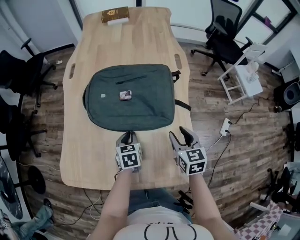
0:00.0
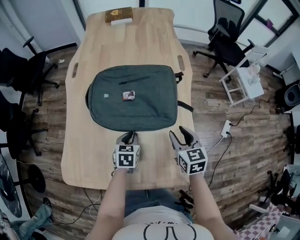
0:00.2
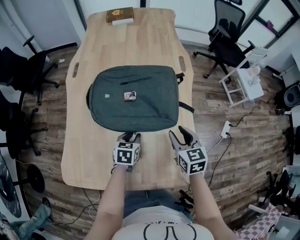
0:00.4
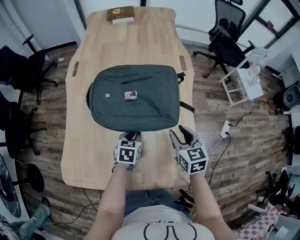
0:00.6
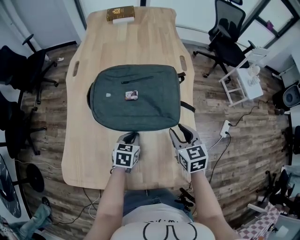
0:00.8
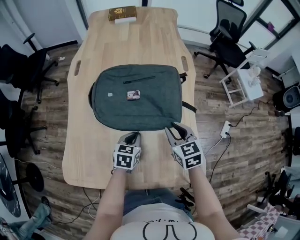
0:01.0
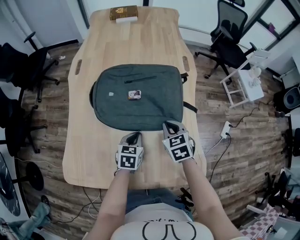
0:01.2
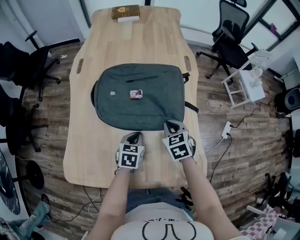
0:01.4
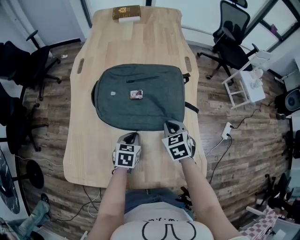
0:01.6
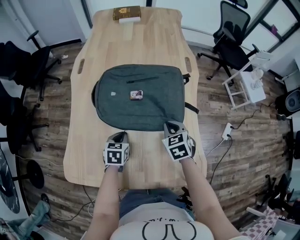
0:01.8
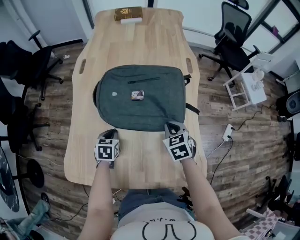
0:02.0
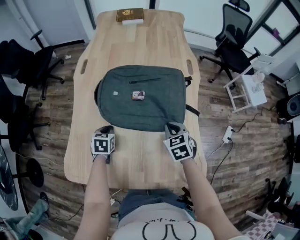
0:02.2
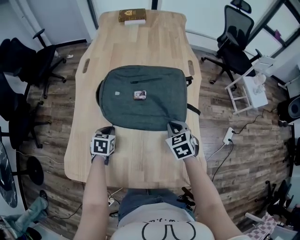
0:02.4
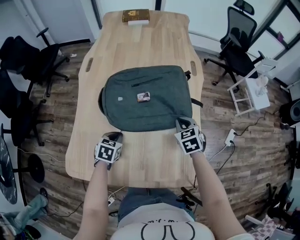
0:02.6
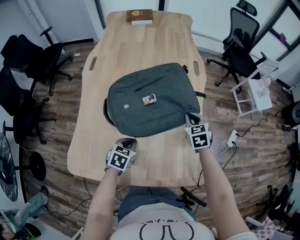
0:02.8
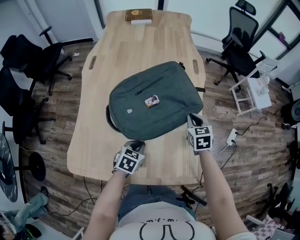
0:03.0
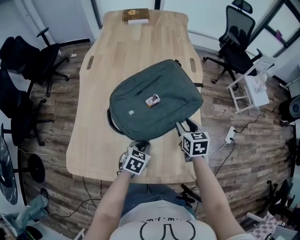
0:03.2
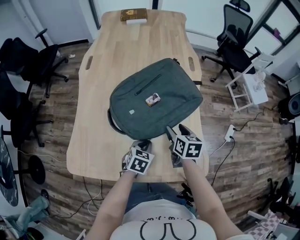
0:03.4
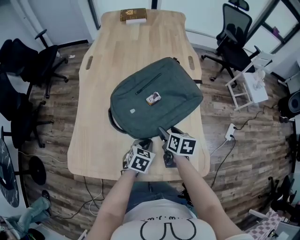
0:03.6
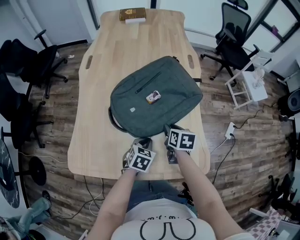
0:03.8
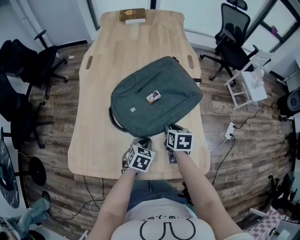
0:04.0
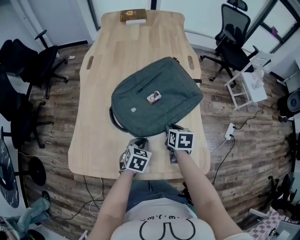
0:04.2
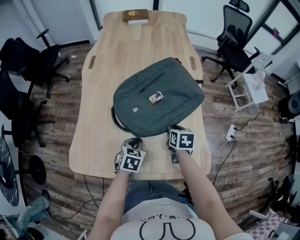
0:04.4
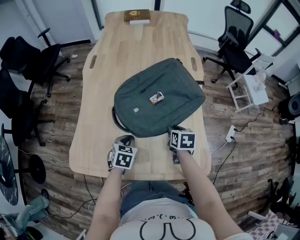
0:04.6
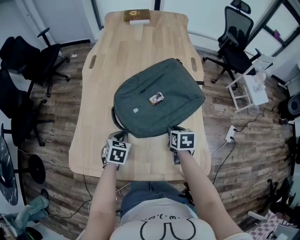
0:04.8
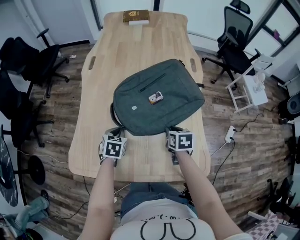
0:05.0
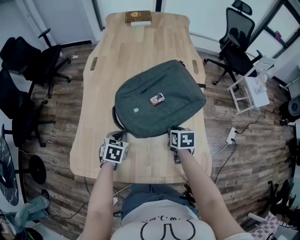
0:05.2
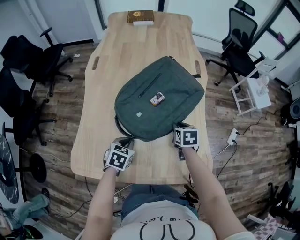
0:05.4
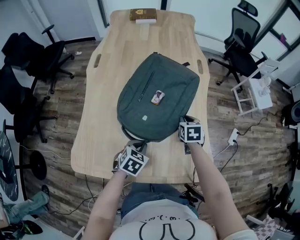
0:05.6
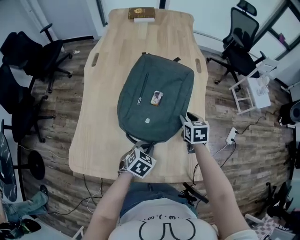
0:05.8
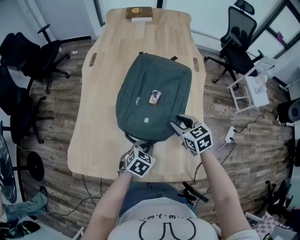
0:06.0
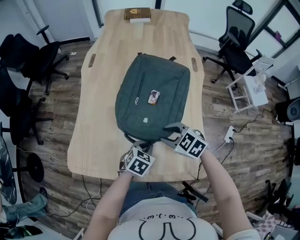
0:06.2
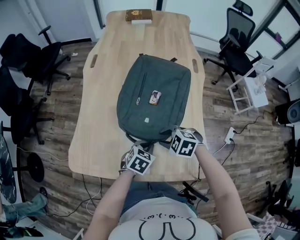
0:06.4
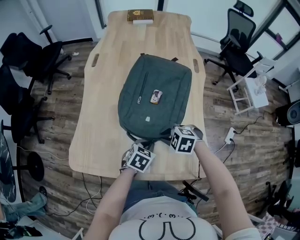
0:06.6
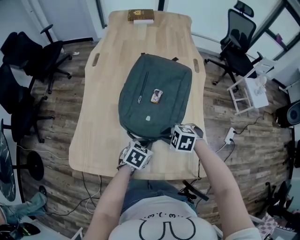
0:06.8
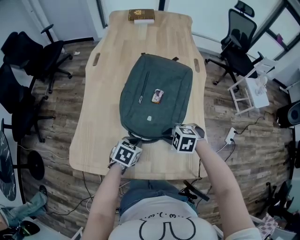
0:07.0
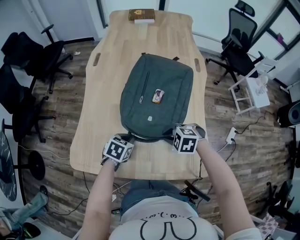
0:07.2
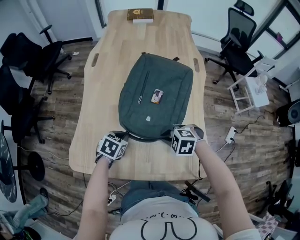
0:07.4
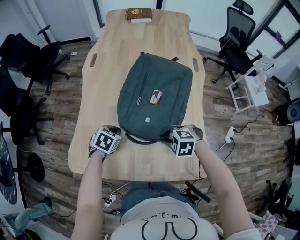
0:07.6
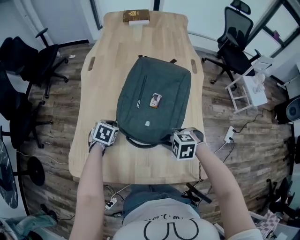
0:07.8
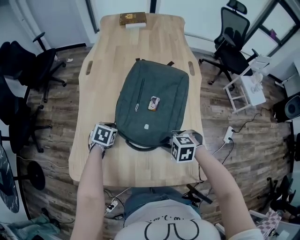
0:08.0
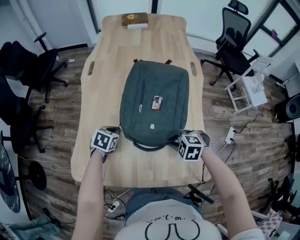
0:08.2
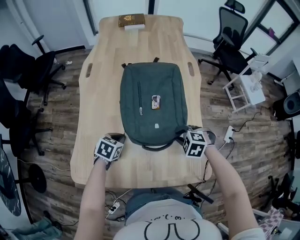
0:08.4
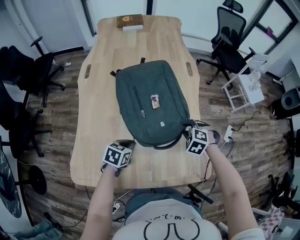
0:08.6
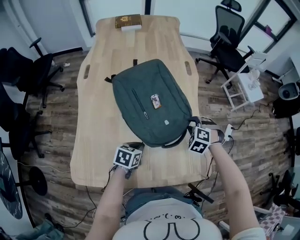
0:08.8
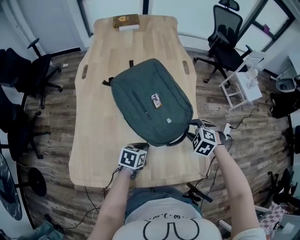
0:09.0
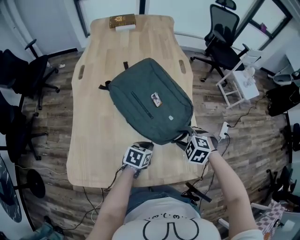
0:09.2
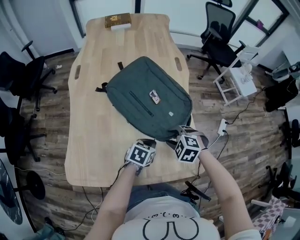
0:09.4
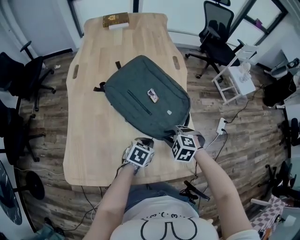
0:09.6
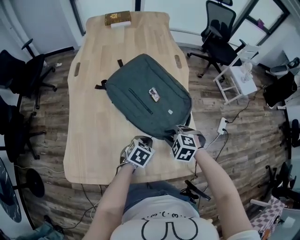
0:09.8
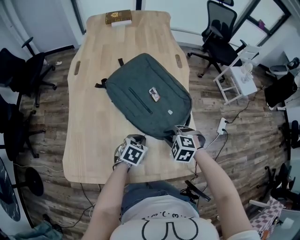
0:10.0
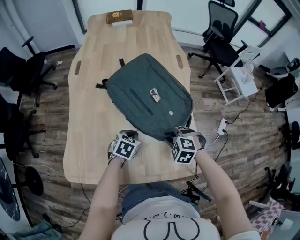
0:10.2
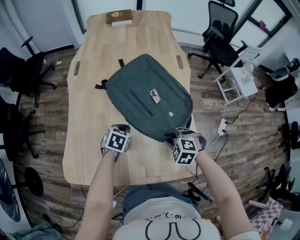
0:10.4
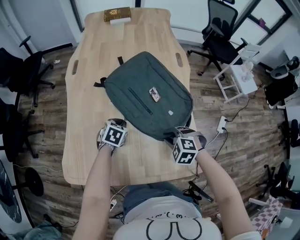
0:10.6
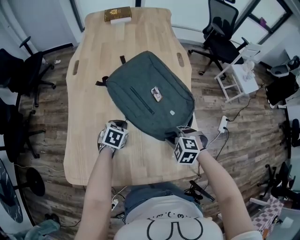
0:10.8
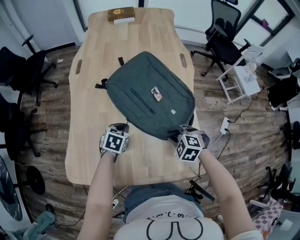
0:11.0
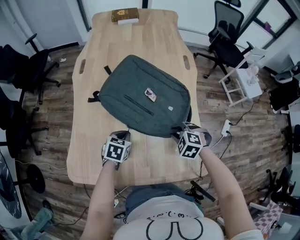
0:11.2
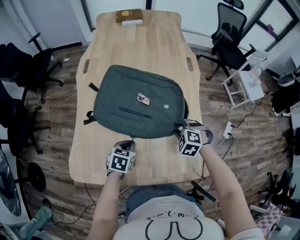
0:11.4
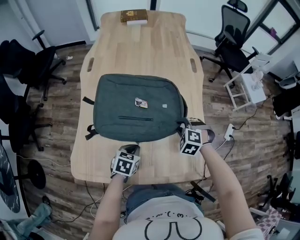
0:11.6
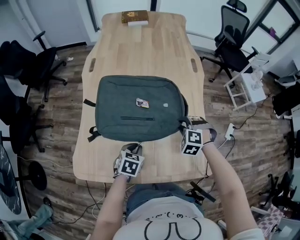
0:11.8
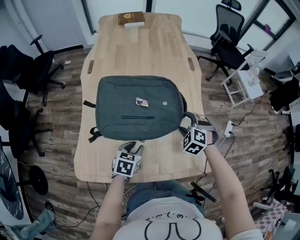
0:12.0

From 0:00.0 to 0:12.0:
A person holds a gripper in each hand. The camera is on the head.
From 0:00.0 to 0:01.6: The right gripper shifts approximately 10 cm to the left, swivels some 20 degrees, and closes its fingers.
From 0:01.6 to 0:03.0: The left gripper moves backward, about 5 cm, and moves about 15 cm to the left and comes back; the right gripper goes some 10 cm to the right.
From 0:03.0 to 0:04.4: The right gripper travels backward and to the left by some 10 cm, turns by about 30 degrees, and opens and closes again.
From 0:04.4 to 0:06.0: The right gripper is displaced upward by approximately 5 cm, and rotates roughly 40 degrees. The left gripper shifts roughly 5 cm to the right.
From 0:06.0 to 0:07.6: The right gripper shifts by about 10 cm, turns by approximately 60 degrees, and closes; the left gripper changes place by approximately 20 cm.
From 0:07.6 to 0:09.0: The left gripper ends up some 15 cm from where it was, and turns by approximately 20 degrees; the right gripper changes place by roughly 15 cm, rotates roughly 30 degrees, and opens its fingers.
From 0:09.0 to 0:10.4: The left gripper goes roughly 10 cm to the left and forward, while the right gripper is displaced backward and to the left by about 10 cm.
From 0:10.4 to 0:12.0: The right gripper heads forward, covering some 5 cm, rotates some 20 degrees, and opens up; the left gripper travels backward by roughly 10 cm, and opens its fingers.

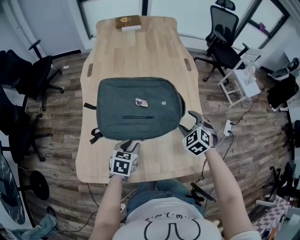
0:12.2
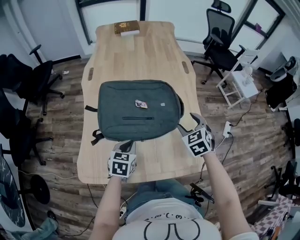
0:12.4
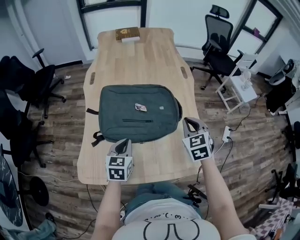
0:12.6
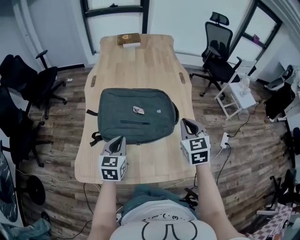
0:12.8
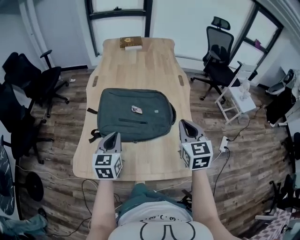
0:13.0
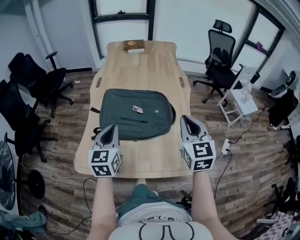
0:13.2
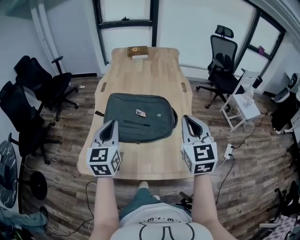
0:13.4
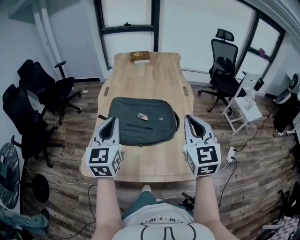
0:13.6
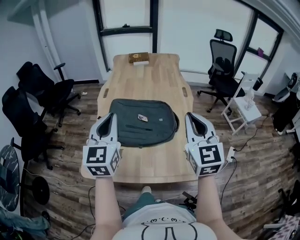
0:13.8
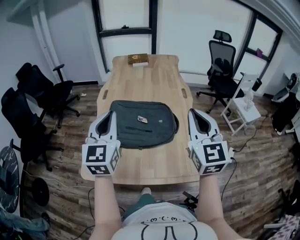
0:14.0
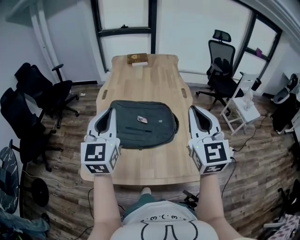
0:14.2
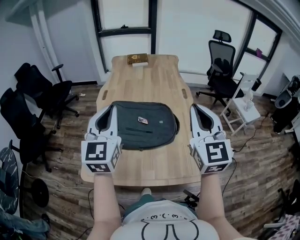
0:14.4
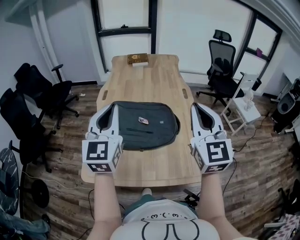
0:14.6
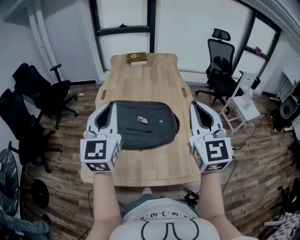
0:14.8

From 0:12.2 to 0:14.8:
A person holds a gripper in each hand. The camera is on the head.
From 0:12.2 to 0:13.4: The grippers both shift upward by some 25 cm. The right gripper tips its fingers upward by approximately 40 degrees, and closes its fingers, while the left gripper angles its fingers upward, by about 40 degrees, and closes.
From 0:13.4 to 0:14.8: Both grippers move upward, roughly 10 cm.

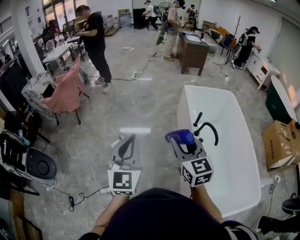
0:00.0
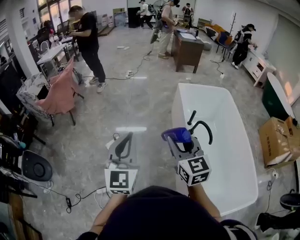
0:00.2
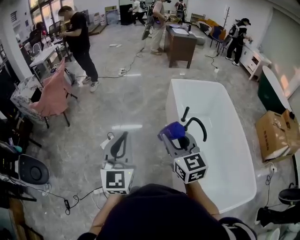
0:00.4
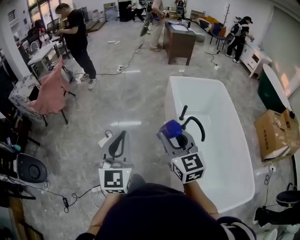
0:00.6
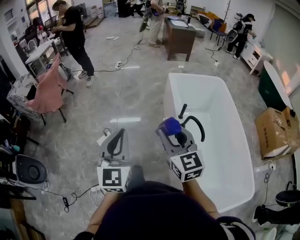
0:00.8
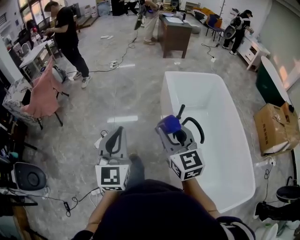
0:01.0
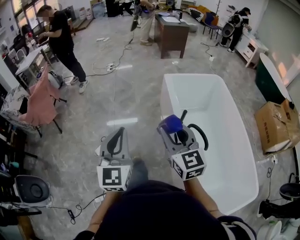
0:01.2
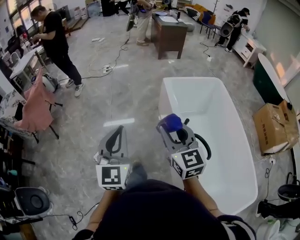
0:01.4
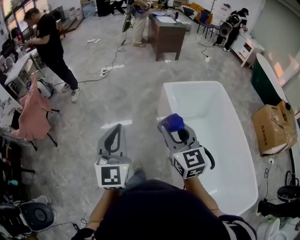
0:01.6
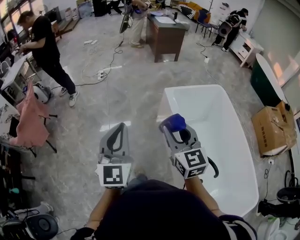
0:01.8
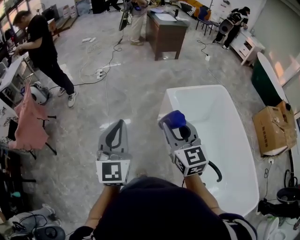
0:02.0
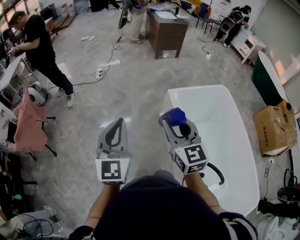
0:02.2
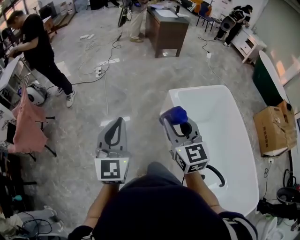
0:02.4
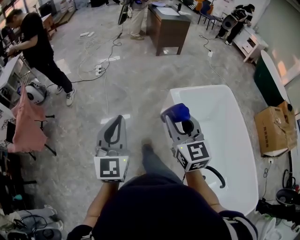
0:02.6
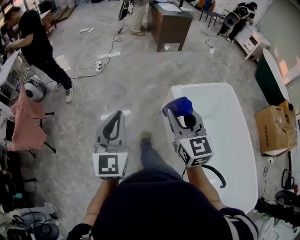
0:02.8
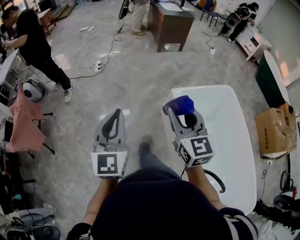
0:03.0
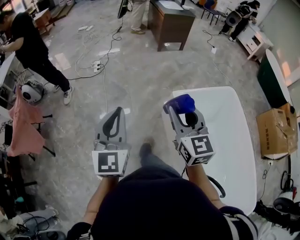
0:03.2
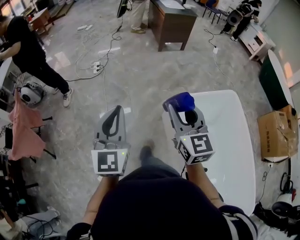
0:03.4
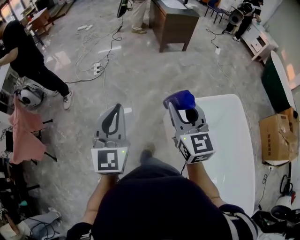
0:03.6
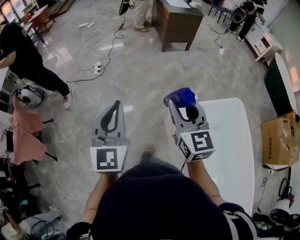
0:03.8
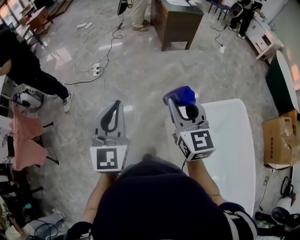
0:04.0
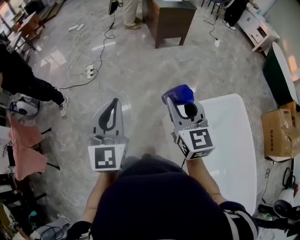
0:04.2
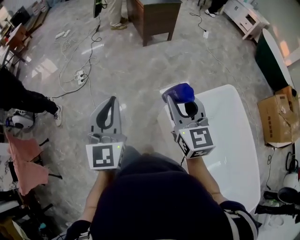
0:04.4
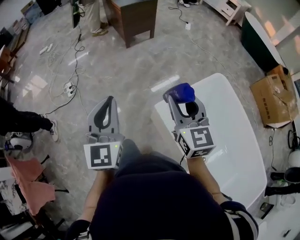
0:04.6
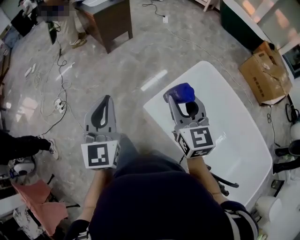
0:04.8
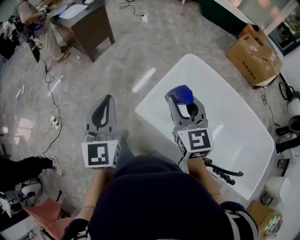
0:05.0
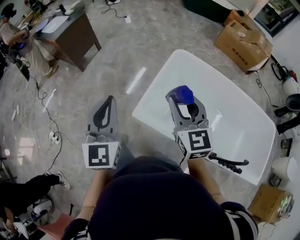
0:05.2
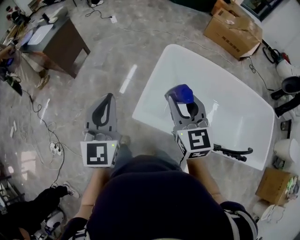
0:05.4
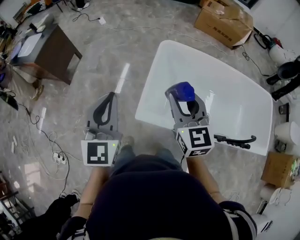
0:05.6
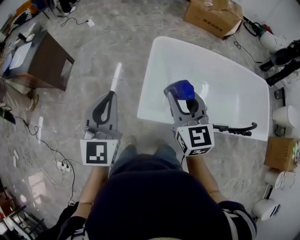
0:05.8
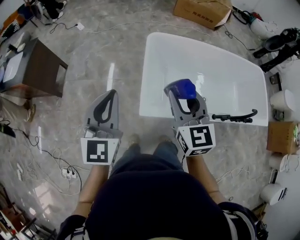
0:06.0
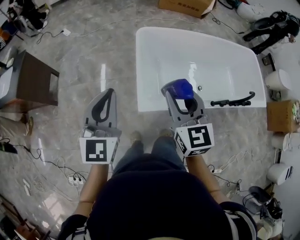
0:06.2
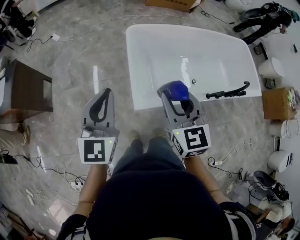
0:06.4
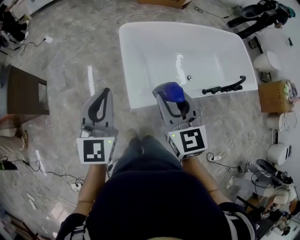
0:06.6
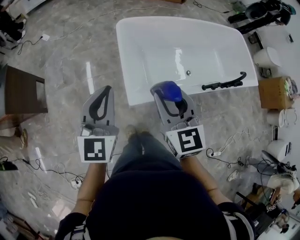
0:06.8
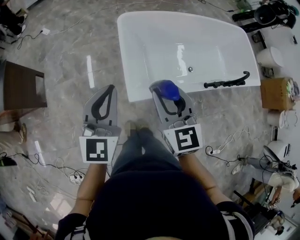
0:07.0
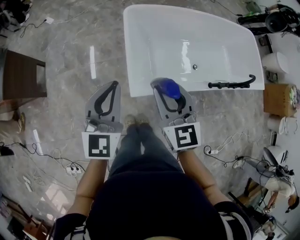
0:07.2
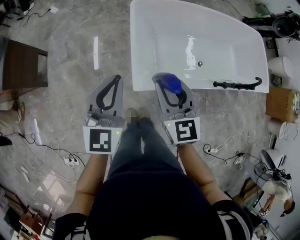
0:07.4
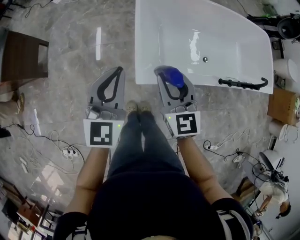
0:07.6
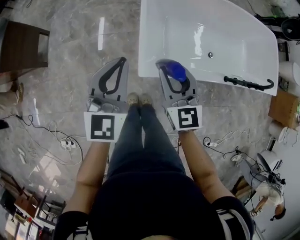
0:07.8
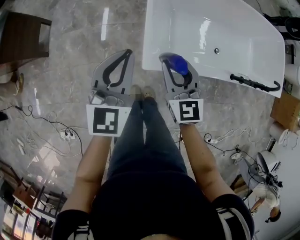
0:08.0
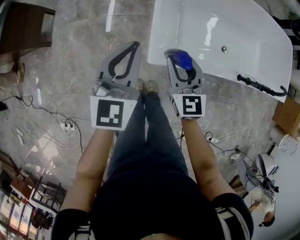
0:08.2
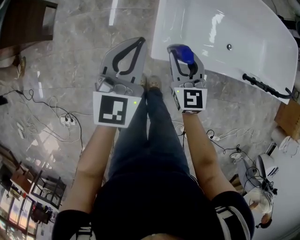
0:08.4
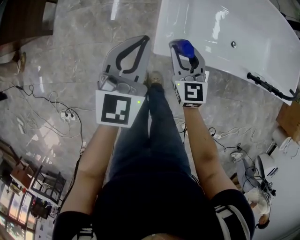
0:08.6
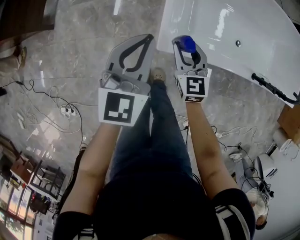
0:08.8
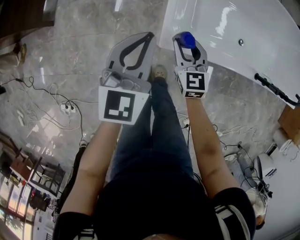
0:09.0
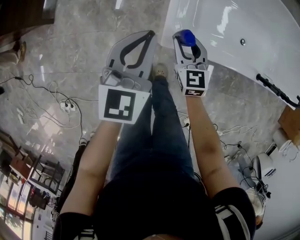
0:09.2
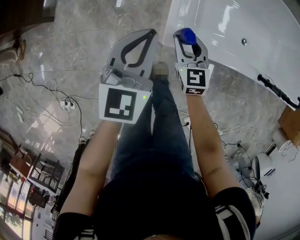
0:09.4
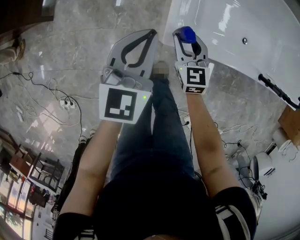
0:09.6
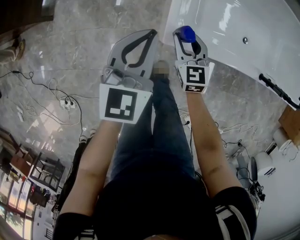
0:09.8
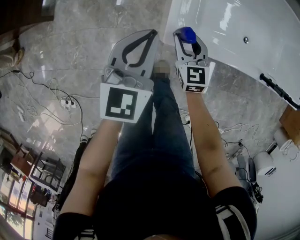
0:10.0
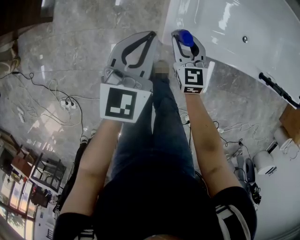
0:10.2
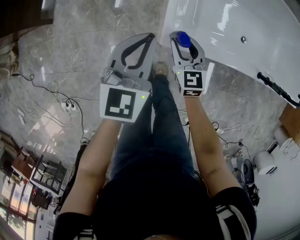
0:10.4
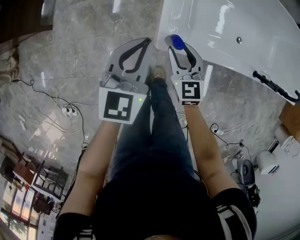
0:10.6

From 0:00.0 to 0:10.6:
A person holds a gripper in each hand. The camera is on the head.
From 0:00.0 to 0:01.6: Both grippers travel together forward, approximately 35 cm.
From 0:01.6 to 0:03.0: The grippers both shift forward by about 30 cm.
From 0:03.0 to 0:04.6: The left gripper shifts about 35 cm forward. The right gripper is displaced forward and to the right by some 35 cm.
From 0:04.6 to 0:06.0: The right gripper moves some 10 cm, and swivels approximately 60 degrees. Meanwhile the left gripper ends up roughly 25 cm from where it was, and changes its angle by approximately 60 degrees.
From 0:06.0 to 0:07.6: Both grippers travel together downward, approximately 15 cm.
From 0:07.6 to 0:09.0: The left gripper goes about 15 cm downward. Meanwhile the right gripper shifts roughly 25 cm downward.
From 0:09.0 to 0:10.6: The grippers make only small movements.
